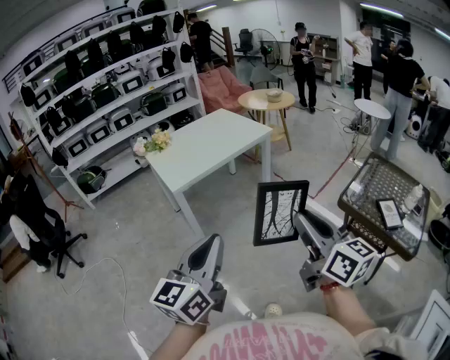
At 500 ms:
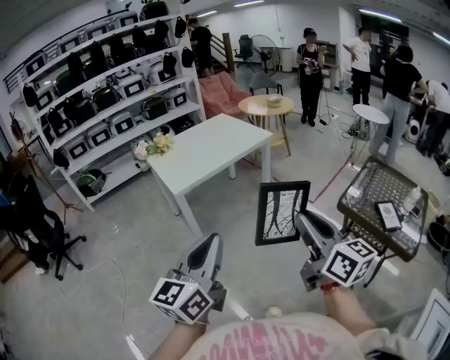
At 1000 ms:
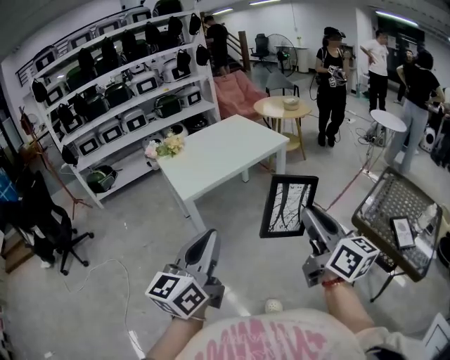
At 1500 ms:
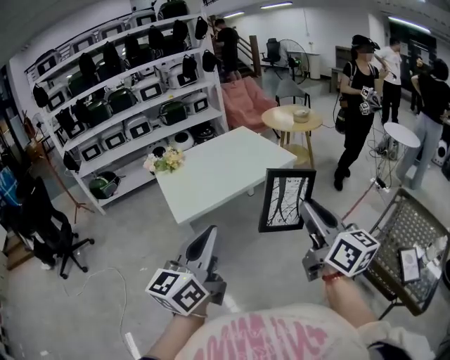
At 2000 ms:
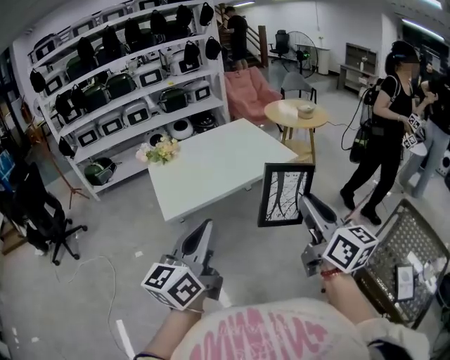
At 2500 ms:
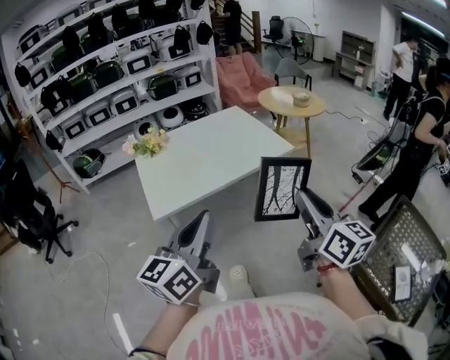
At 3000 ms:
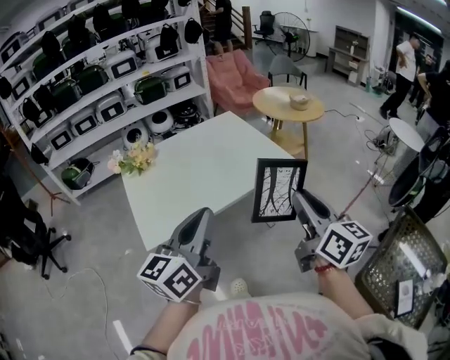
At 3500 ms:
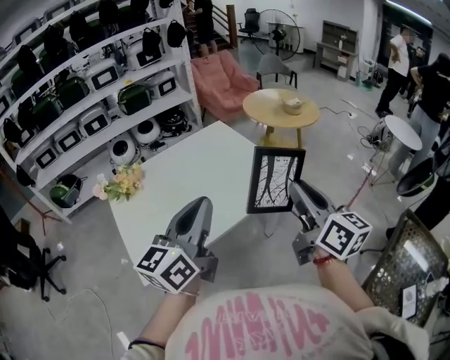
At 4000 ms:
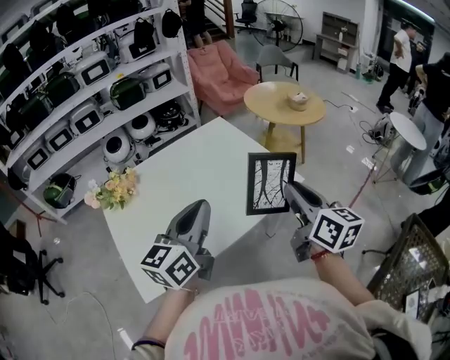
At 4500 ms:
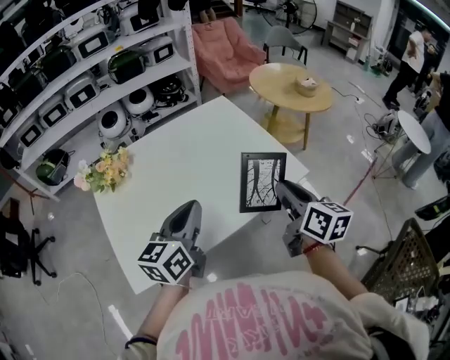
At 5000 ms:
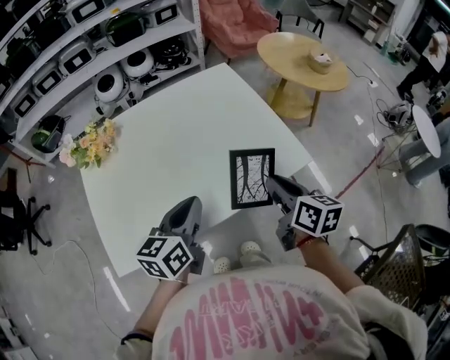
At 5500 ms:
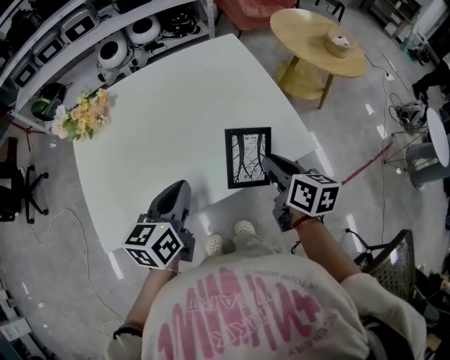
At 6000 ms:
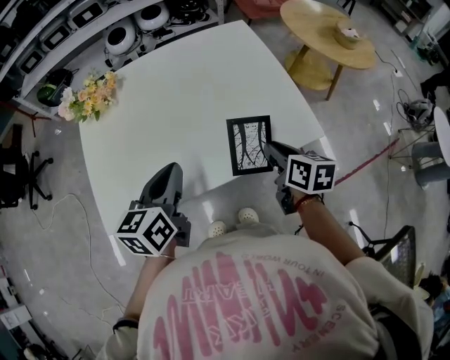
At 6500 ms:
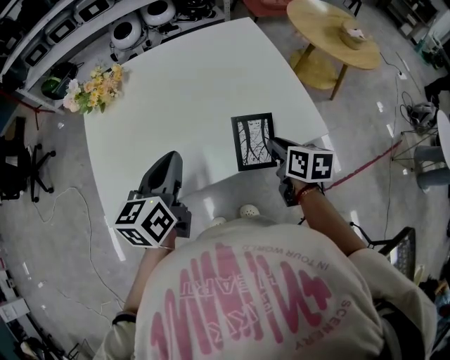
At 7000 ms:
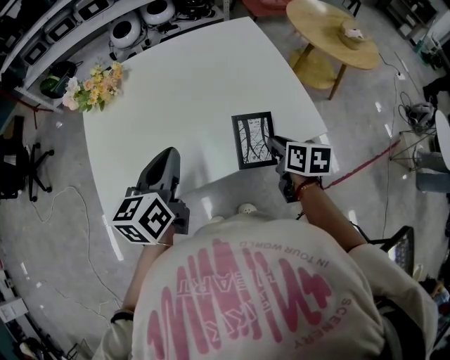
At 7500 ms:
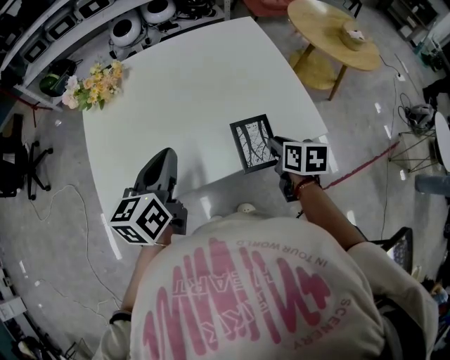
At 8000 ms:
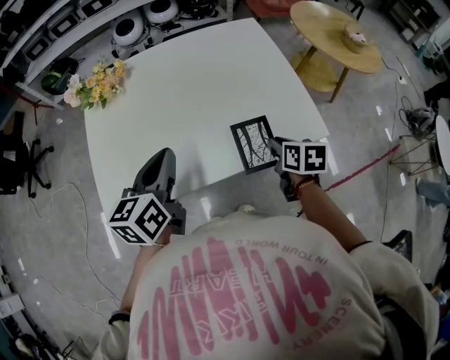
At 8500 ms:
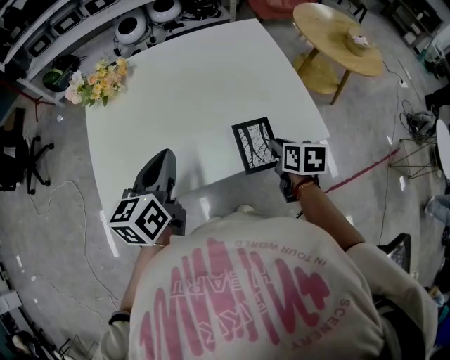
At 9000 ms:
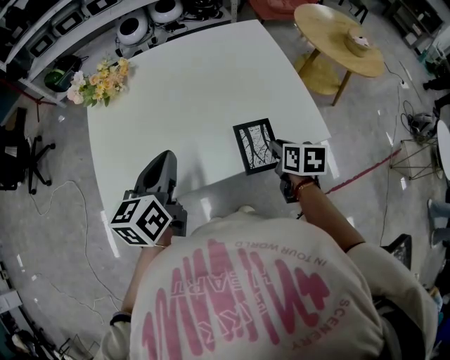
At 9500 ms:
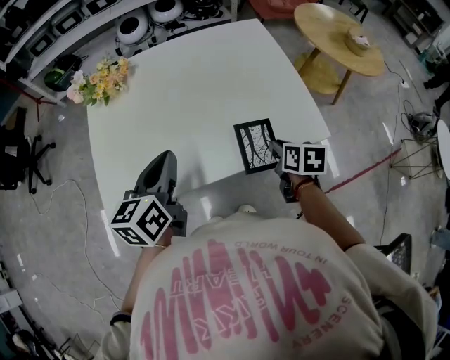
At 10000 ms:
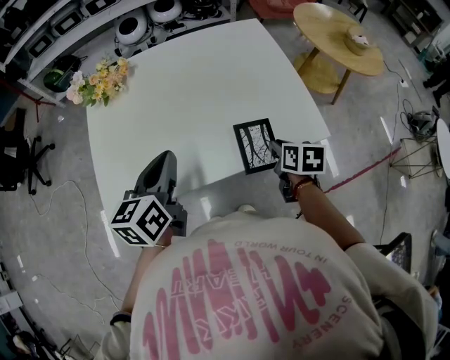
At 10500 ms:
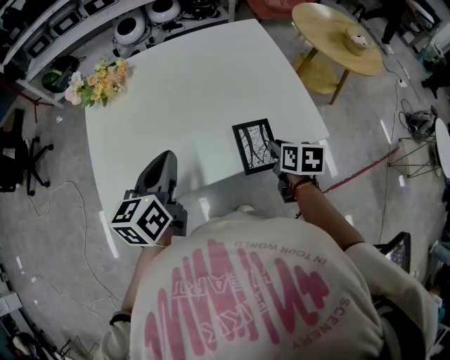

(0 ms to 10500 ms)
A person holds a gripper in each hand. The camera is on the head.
0 ms - 2000 ms: The two grippers go roughly 30 cm forward.
2000 ms - 4000 ms: The two grippers travel together, forward, roughly 40 cm.
4000 ms - 6500 ms: The left gripper shifts approximately 15 cm downward, and swivels approximately 30 degrees. The right gripper travels downward and forward by about 25 cm, and tips its fingers downward by approximately 40 degrees.
6500 ms - 8500 ms: There are only small adjustments of the grippers.
8500 ms - 10500 ms: The two grippers keep their place.

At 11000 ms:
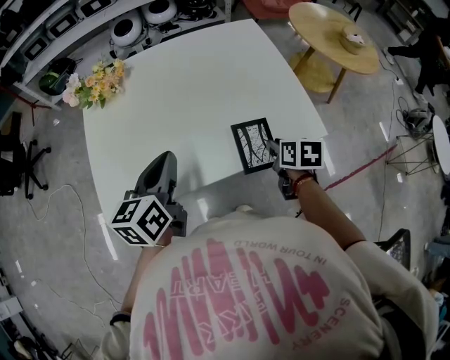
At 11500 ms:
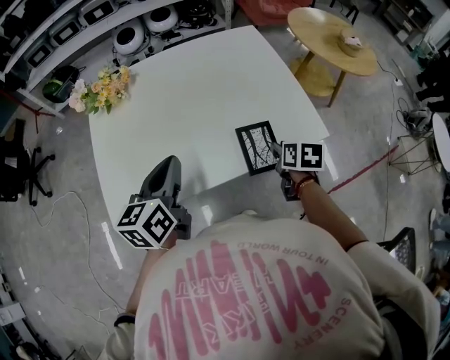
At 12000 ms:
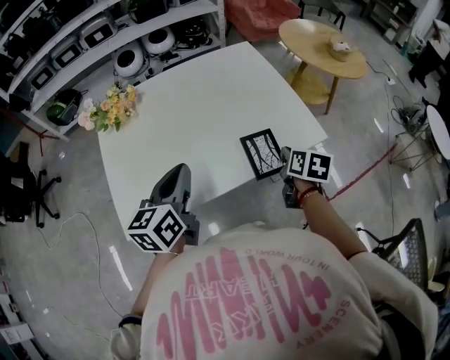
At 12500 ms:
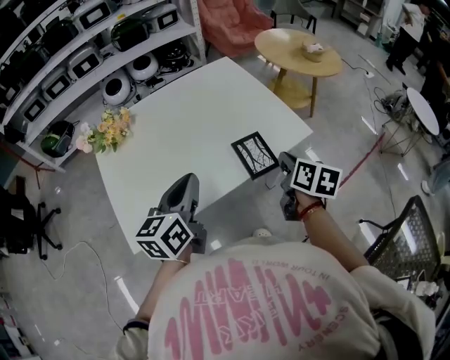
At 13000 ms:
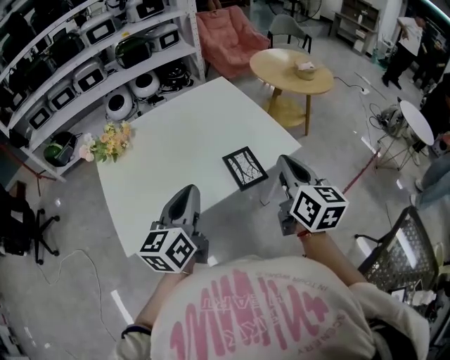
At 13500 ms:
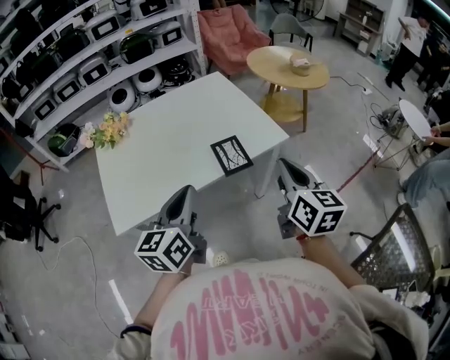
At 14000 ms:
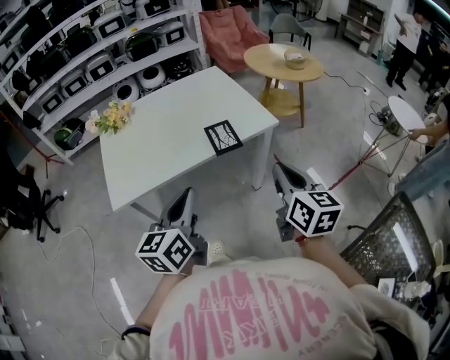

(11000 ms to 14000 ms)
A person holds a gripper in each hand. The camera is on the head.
11000 ms - 12500 ms: The right gripper moves upward and backward, some 15 cm, and swivels some 30 degrees, while the left gripper moves about 5 cm.
12500 ms - 14000 ms: The left gripper heads backward and to the right, covering approximately 25 cm. Meanwhile the right gripper goes some 25 cm backward, upward and to the right, and rotates about 30 degrees.

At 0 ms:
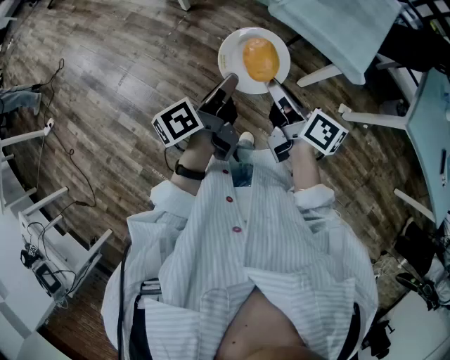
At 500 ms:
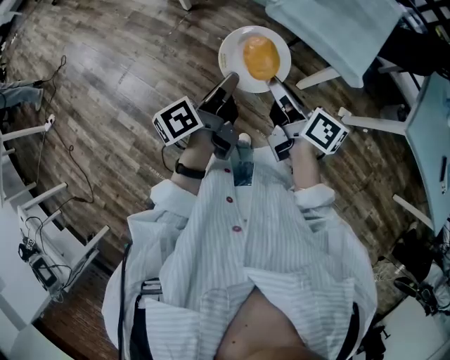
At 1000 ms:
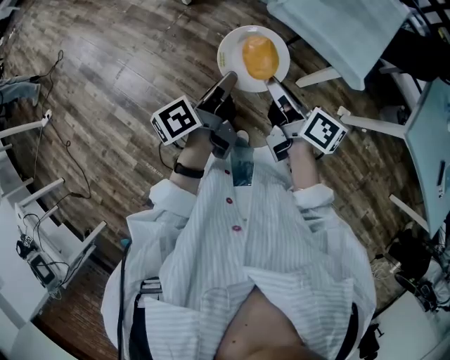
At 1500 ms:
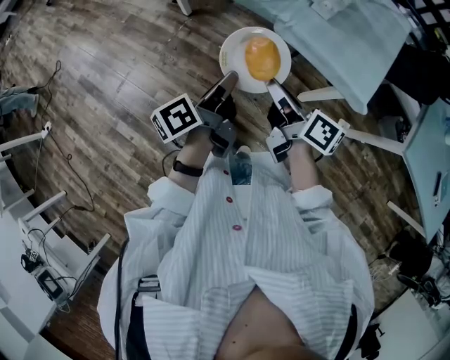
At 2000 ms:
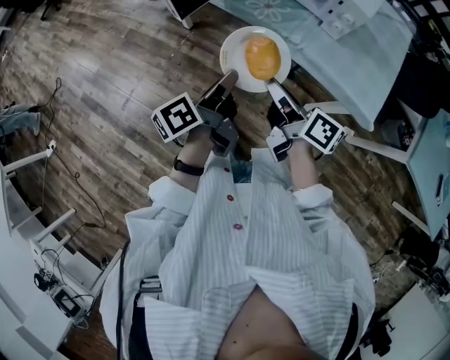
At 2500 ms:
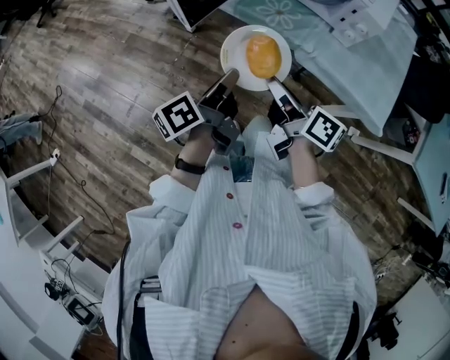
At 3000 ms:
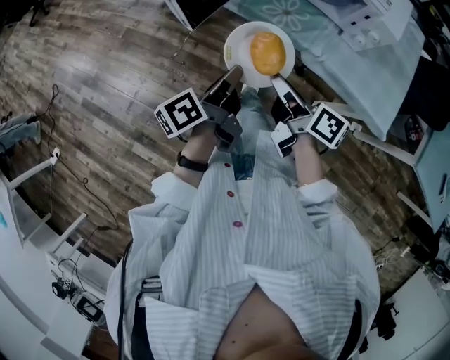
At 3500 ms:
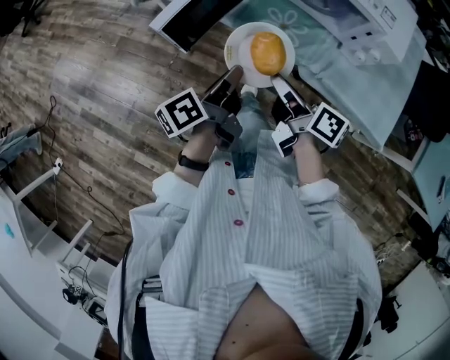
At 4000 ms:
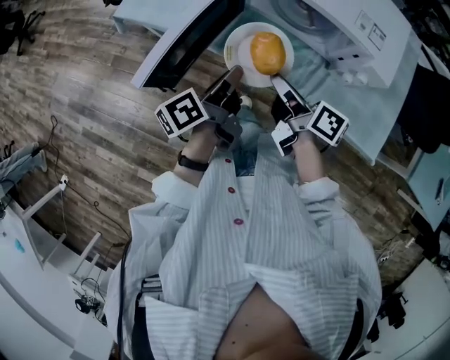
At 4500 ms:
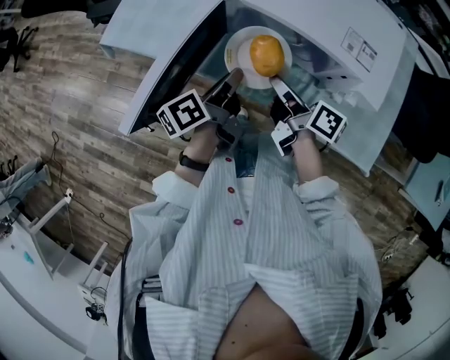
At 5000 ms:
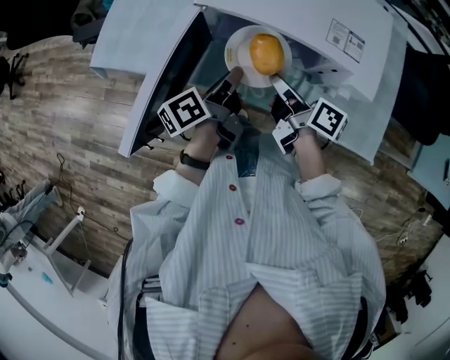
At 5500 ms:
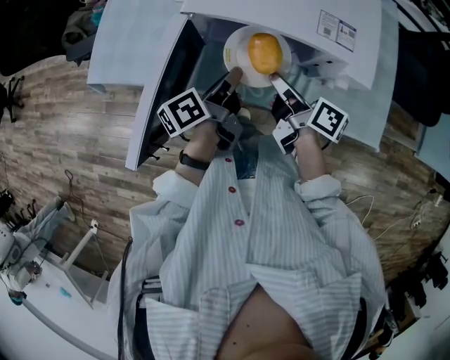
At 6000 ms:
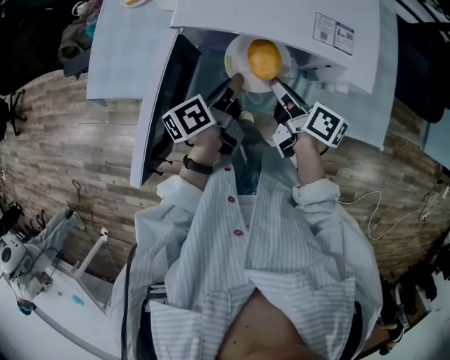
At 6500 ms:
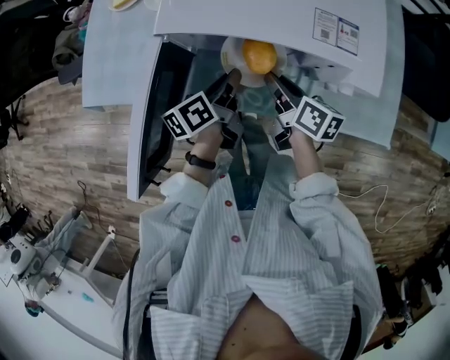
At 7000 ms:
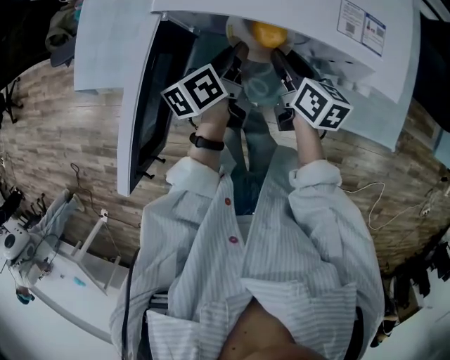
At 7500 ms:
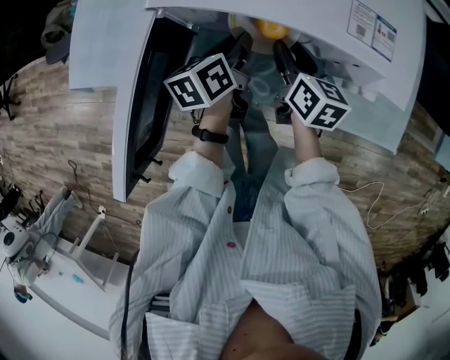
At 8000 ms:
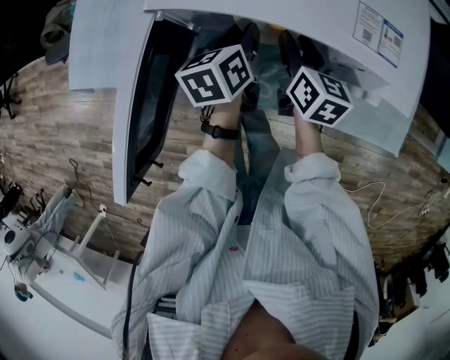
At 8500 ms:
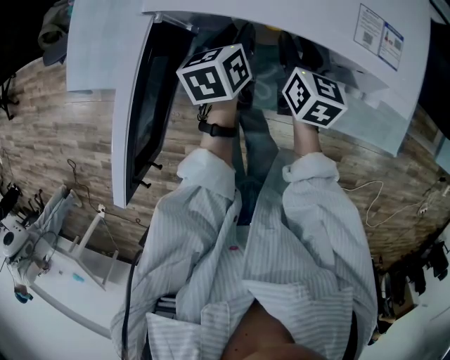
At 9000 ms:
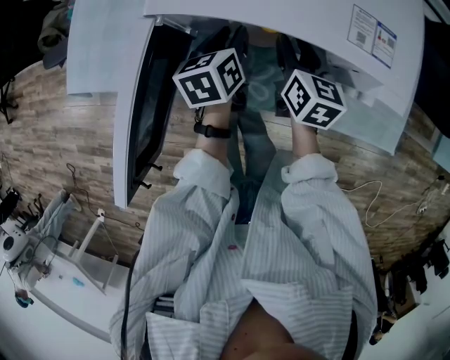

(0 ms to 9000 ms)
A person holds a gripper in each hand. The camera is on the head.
0 ms - 2000 ms: Both grippers move forward, roughly 20 cm.
2000 ms - 4500 ms: The two grippers go approximately 35 cm forward. The right gripper turns by approximately 20 degrees.
4500 ms - 7000 ms: The two grippers go about 15 cm forward, downward and to the right. The right gripper rotates approximately 30 degrees, and opens its fingers. Meanwhile the left gripper turns by some 20 degrees.
7000 ms - 9000 ms: The left gripper ends up about 5 cm from where it was, and rotates some 20 degrees.

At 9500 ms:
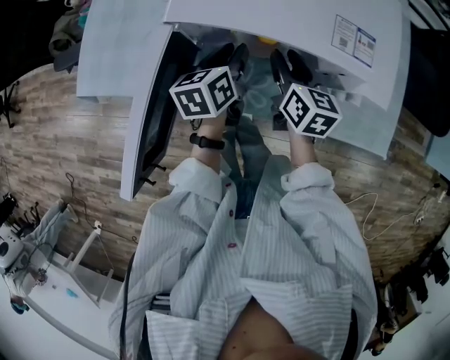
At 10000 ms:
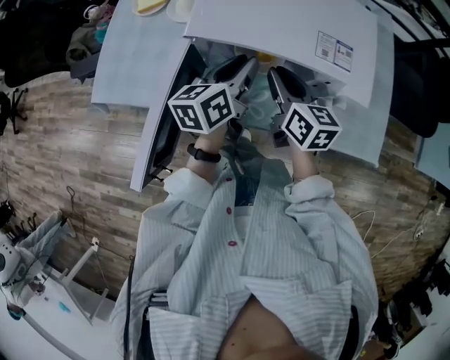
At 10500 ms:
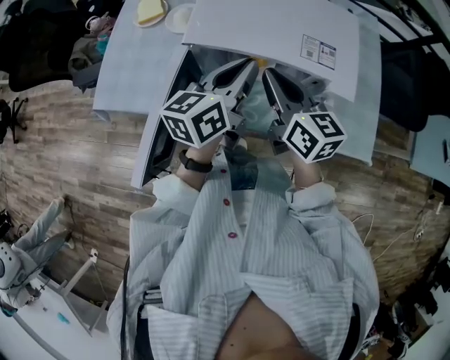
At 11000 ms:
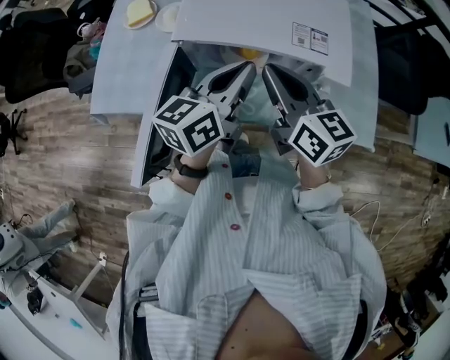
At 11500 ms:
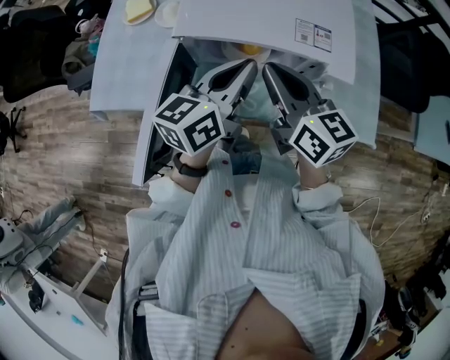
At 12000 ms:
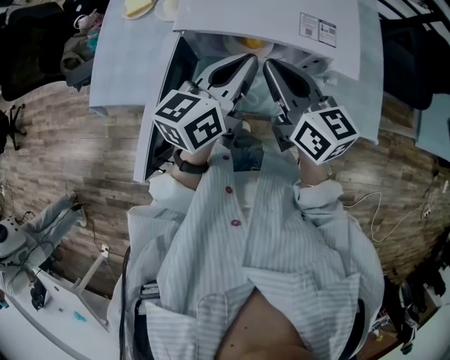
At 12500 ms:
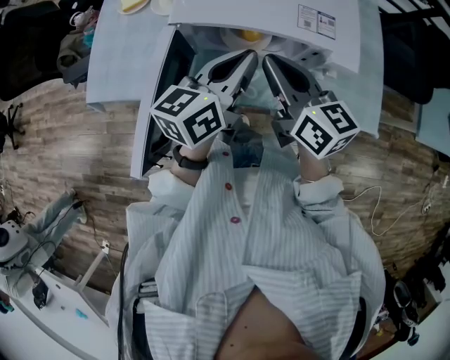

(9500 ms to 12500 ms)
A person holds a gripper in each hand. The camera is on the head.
9500 ms - 11000 ms: Both grippers move upward, some 20 cm. The left gripper rotates approximately 30 degrees, and closes up. The right gripper turns by approximately 20 degrees, and closes up.
11000 ms - 12500 ms: The grippers make only small movements.

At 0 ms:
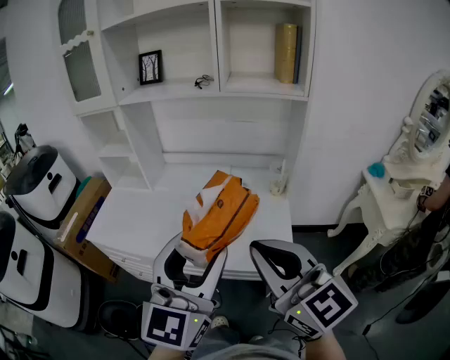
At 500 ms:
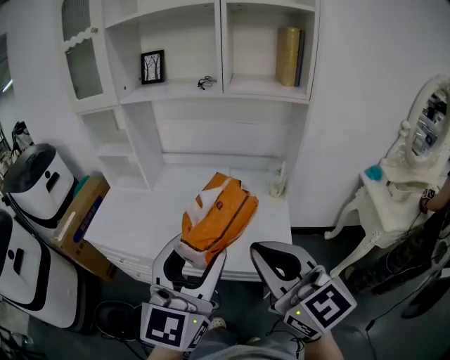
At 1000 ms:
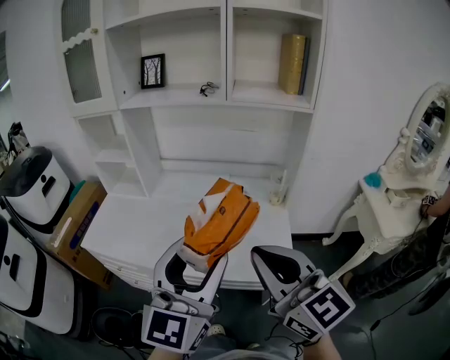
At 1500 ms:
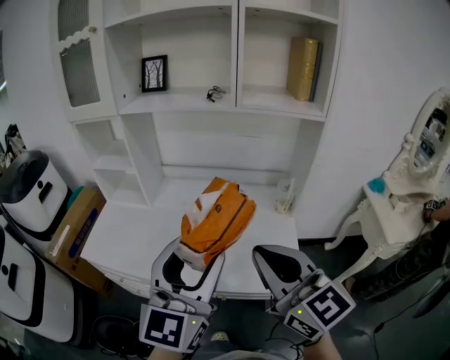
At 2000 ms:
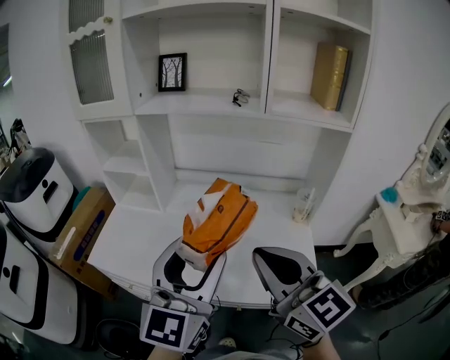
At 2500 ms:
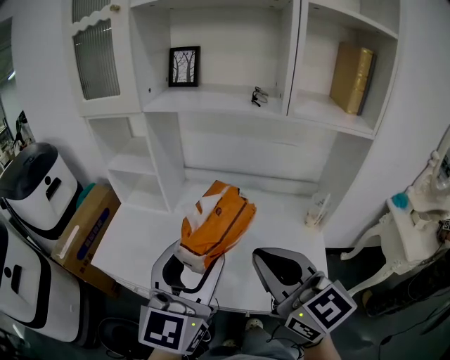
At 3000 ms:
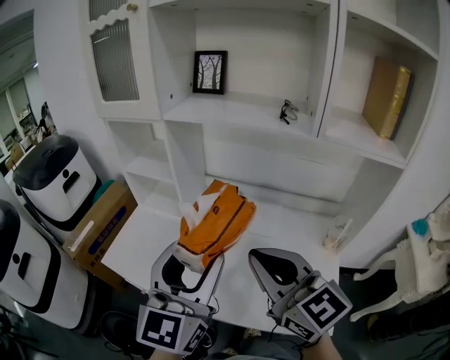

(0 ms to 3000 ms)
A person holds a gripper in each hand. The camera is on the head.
0 ms - 1500 ms: The right gripper shifts about 10 cm forward, while the left gripper travels forward and to the left by about 10 cm.
1500 ms - 3000 ms: The grippers both shift forward and to the left by approximately 20 cm.
